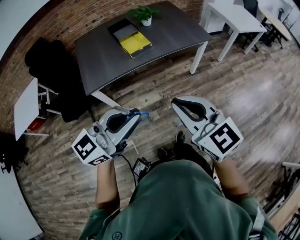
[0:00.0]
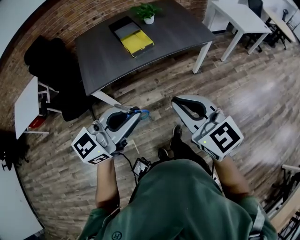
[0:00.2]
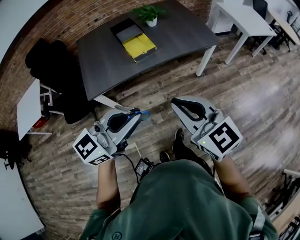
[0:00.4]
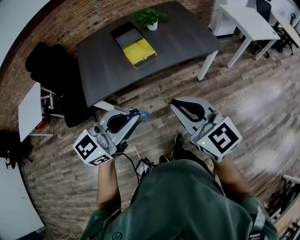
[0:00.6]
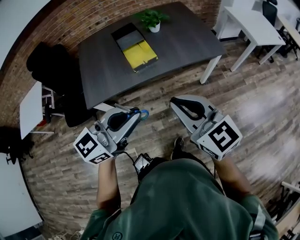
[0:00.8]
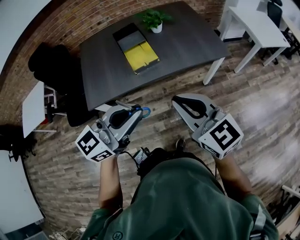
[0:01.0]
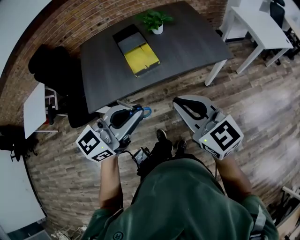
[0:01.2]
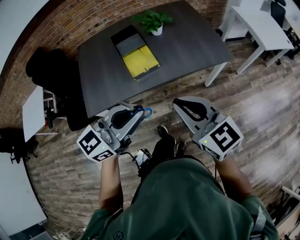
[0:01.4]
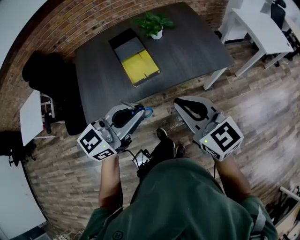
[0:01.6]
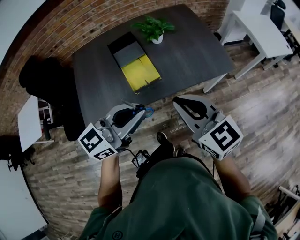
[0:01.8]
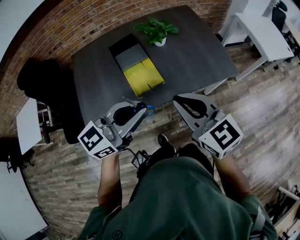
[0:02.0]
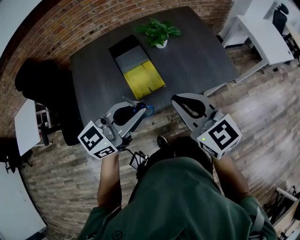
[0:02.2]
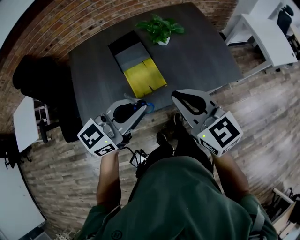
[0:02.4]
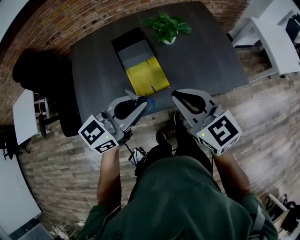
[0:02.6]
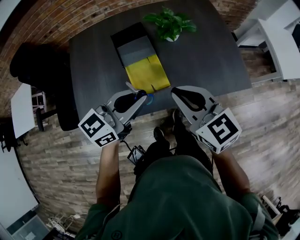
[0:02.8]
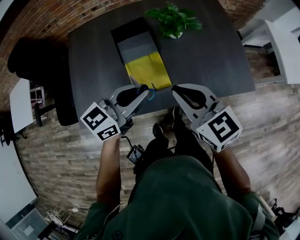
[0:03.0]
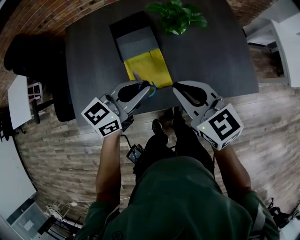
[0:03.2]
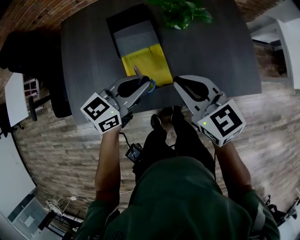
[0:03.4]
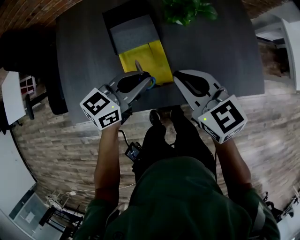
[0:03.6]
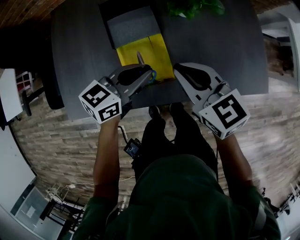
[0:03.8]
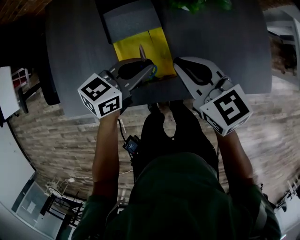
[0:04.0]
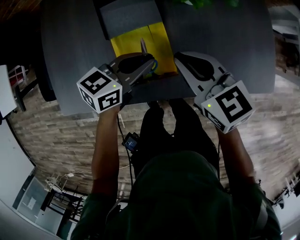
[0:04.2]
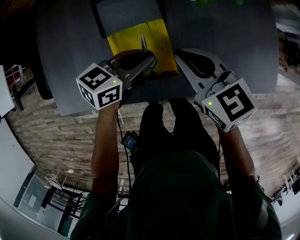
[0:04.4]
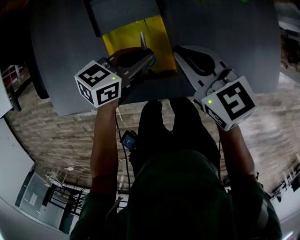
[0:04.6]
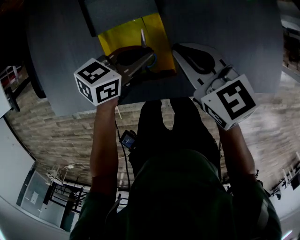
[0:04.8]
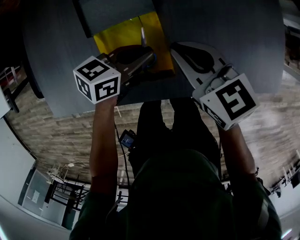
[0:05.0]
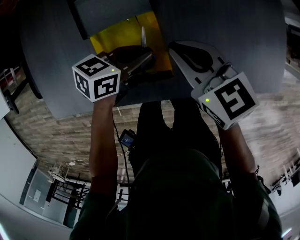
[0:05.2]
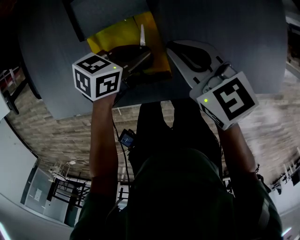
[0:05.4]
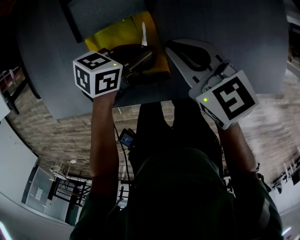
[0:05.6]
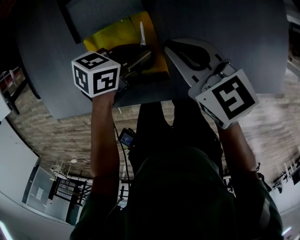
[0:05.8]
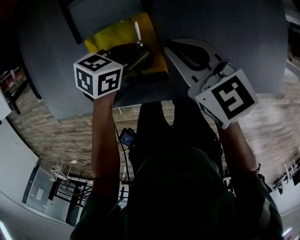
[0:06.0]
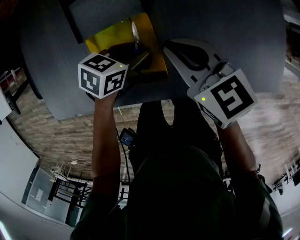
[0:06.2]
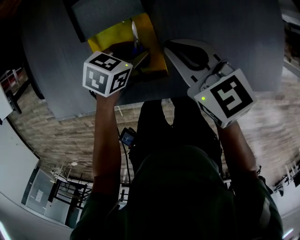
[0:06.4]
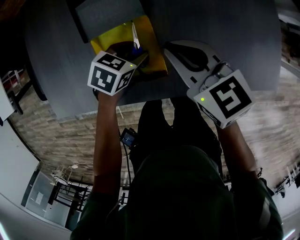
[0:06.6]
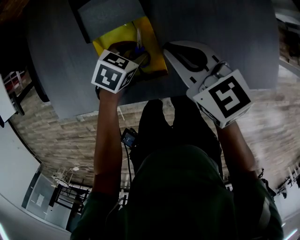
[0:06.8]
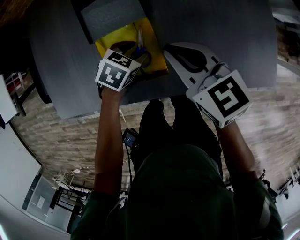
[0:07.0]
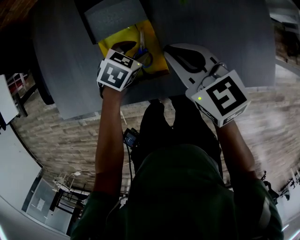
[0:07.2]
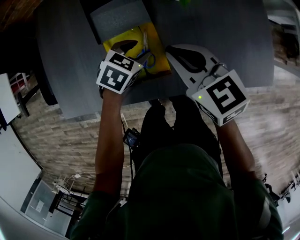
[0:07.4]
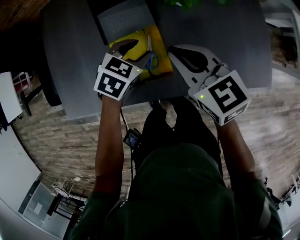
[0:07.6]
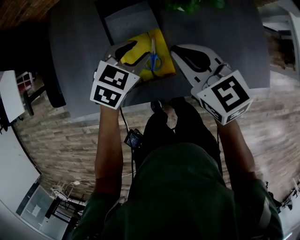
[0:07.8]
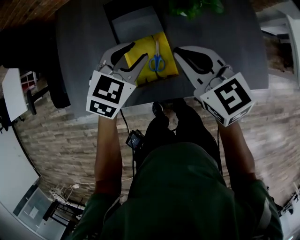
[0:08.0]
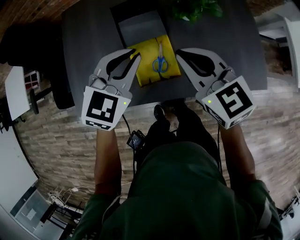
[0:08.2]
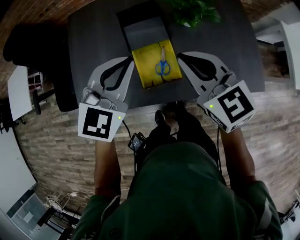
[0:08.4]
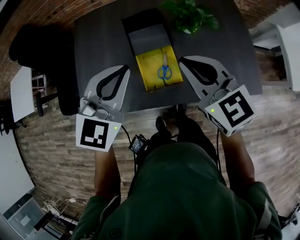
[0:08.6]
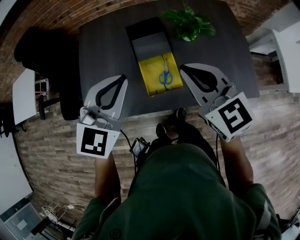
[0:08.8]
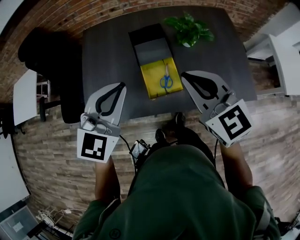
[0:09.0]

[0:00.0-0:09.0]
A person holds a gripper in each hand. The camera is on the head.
0:00.0 to 0:01.6: Both grippers move forward, about 30 cm.
0:01.6 to 0:03.0: The right gripper heads forward, covering some 20 cm. The left gripper travels forward and downward by roughly 25 cm.
0:03.0 to 0:04.4: Both grippers travel together downward and forward, some 20 cm. The left gripper swivels roughly 20 degrees.
0:04.4 to 0:06.0: The left gripper goes roughly 10 cm downward; the right gripper changes place by about 5 cm.
0:06.0 to 0:07.6: The two grippers go some 10 cm upward. The left gripper rotates some 40 degrees, and opens its fingers.
0:07.6 to 0:09.0: The right gripper heads upward and backward, covering approximately 20 cm, and rotates some 20 degrees, while the left gripper is displaced upward, backward and to the left by roughly 35 cm, angles its fingers upward, by about 40 degrees, and closes its fingers.

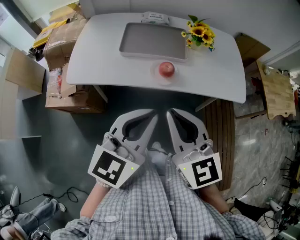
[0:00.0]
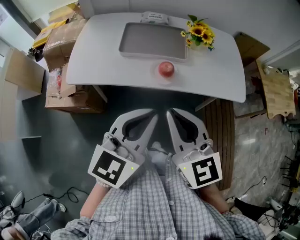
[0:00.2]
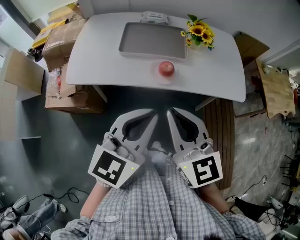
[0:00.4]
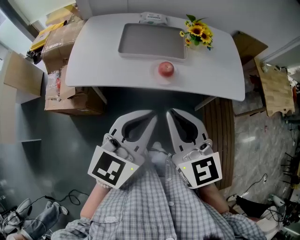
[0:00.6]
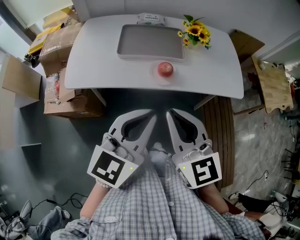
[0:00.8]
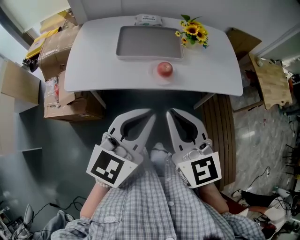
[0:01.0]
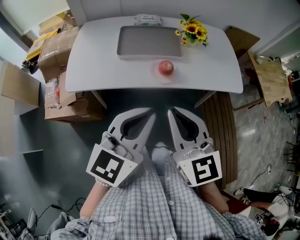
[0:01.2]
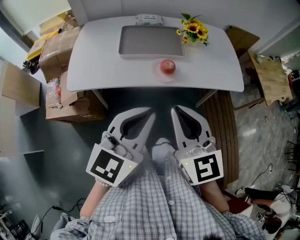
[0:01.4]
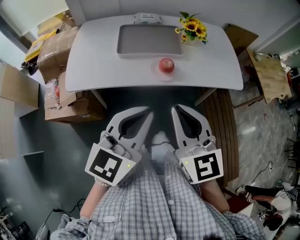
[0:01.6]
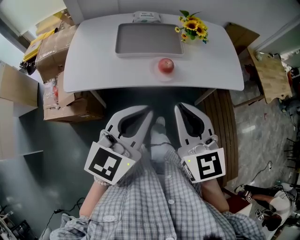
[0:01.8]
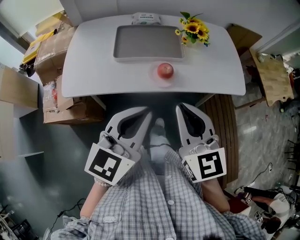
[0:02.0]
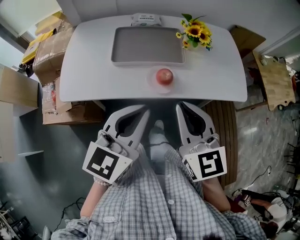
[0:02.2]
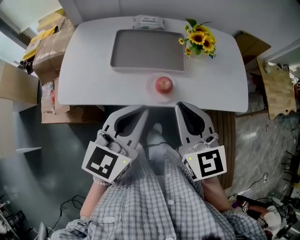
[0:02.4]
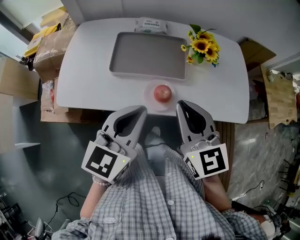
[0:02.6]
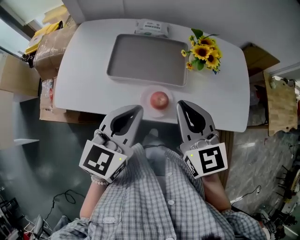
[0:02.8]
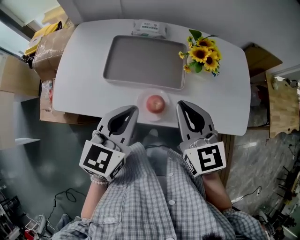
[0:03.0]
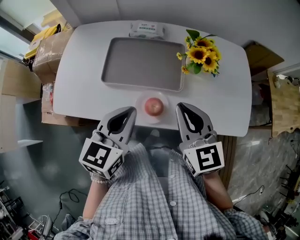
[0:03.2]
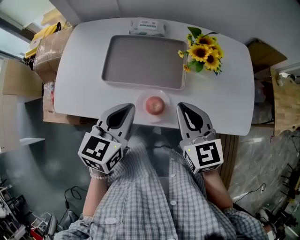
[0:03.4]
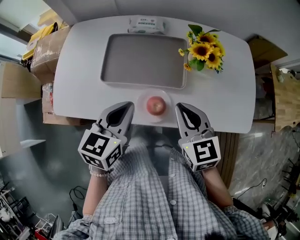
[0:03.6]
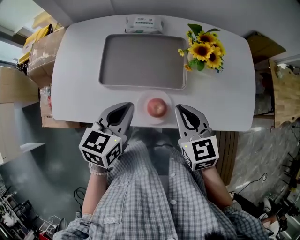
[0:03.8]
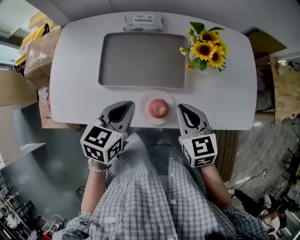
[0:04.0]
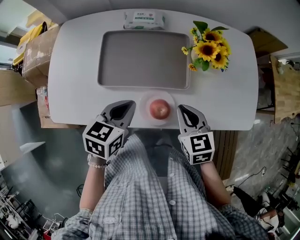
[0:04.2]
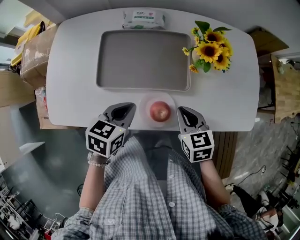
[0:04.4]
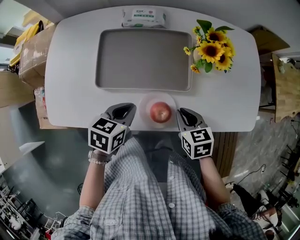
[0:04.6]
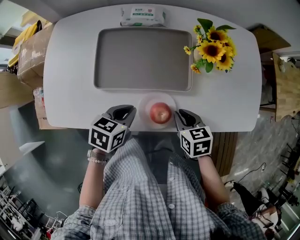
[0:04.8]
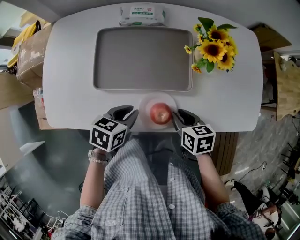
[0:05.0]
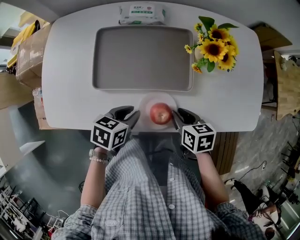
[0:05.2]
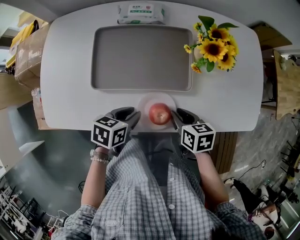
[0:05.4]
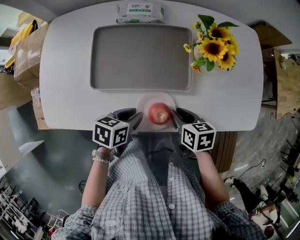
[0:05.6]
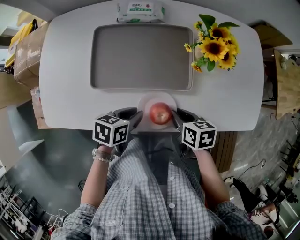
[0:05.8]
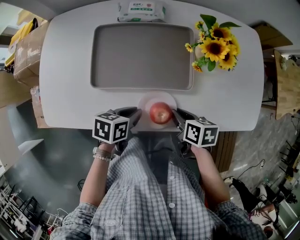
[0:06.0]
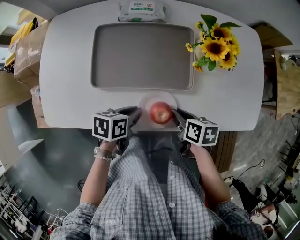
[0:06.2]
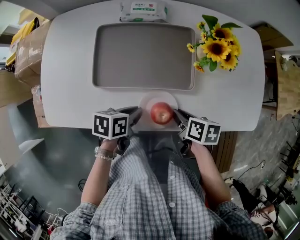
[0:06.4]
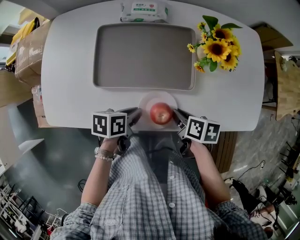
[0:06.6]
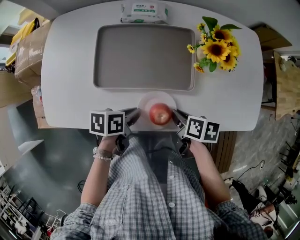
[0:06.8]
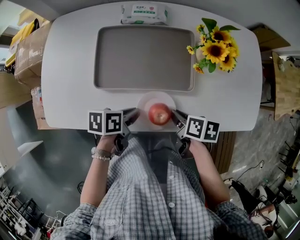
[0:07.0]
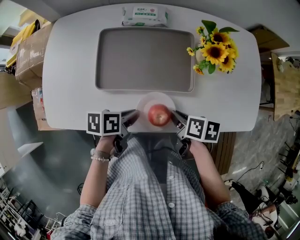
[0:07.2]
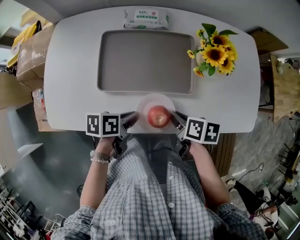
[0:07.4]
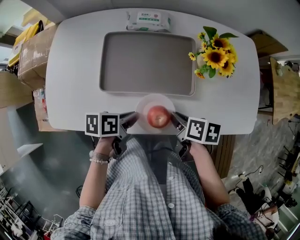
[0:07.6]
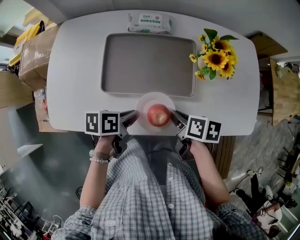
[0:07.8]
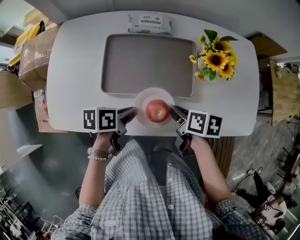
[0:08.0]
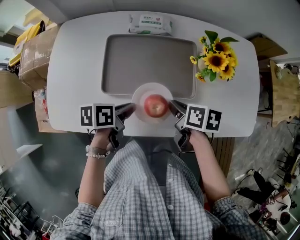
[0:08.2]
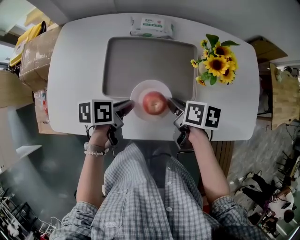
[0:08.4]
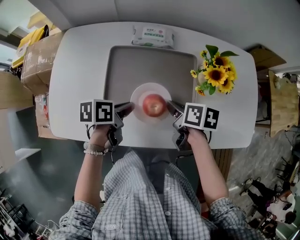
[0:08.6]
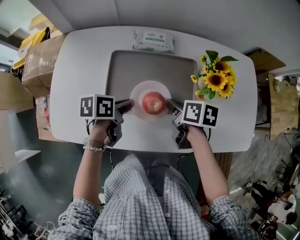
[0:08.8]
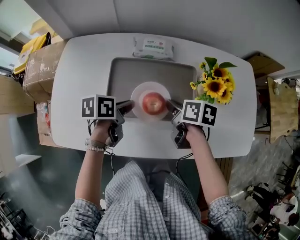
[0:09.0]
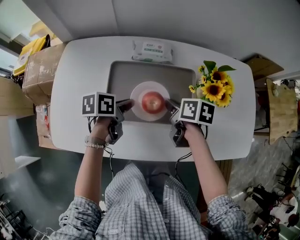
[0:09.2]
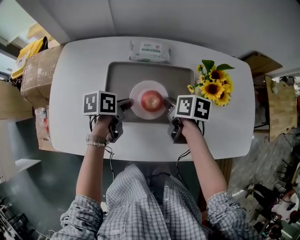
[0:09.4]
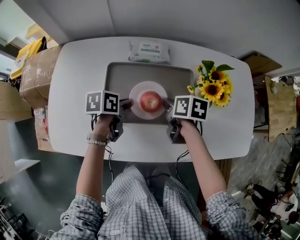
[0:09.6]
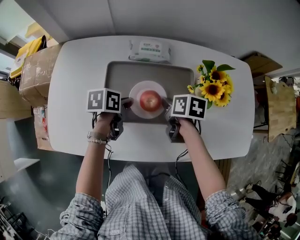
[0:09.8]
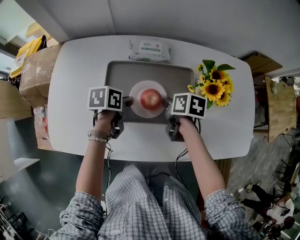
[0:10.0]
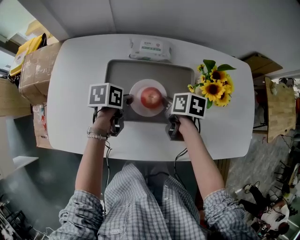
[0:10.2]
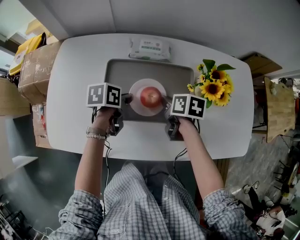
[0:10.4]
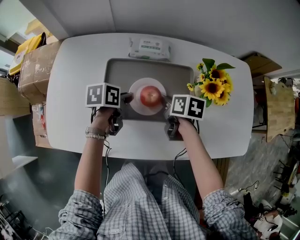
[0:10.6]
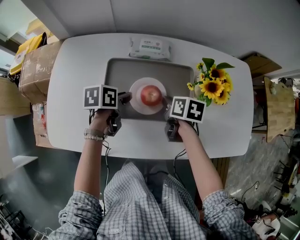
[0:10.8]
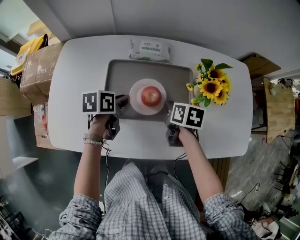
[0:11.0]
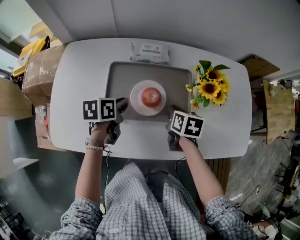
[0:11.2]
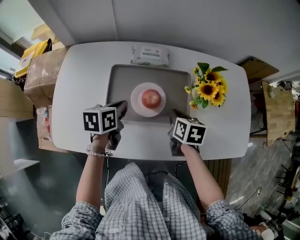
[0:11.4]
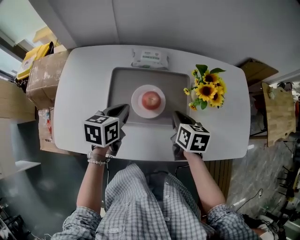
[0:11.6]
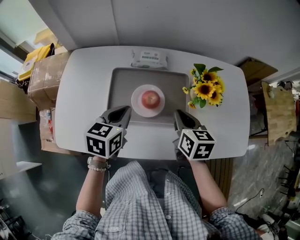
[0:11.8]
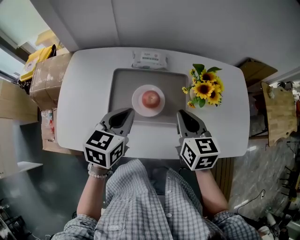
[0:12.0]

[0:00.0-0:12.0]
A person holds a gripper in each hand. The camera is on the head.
0:00.0 to 0:01.6: The left gripper ends up approximately 5 cm from where it was.
0:01.6 to 0:03.0: The grippers both shift forward by roughly 25 cm.
0:03.0 to 0:04.4: The left gripper goes roughly 15 cm downward and forward, and swivels approximately 30 degrees; the right gripper goes some 20 cm downward, and turns by approximately 30 degrees.
0:04.4 to 0:06.0: The two grippers go approximately 10 cm downward. The left gripper changes its angle by approximately 20 degrees; the right gripper swivels about 40 degrees.
0:06.0 to 0:07.6: The grippers stay close to where they were, moving slightly.
0:07.6 to 0:09.0: Both grippers move forward and to the left, roughly 15 cm.
0:09.0 to 0:10.4: The left gripper shifts by some 5 cm.
0:10.4 to 0:12.0: Both grippers travel together upward and backward, approximately 20 cm. The left gripper swivels roughly 40 degrees. Meanwhile the right gripper changes its angle by about 40 degrees.

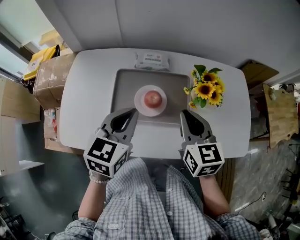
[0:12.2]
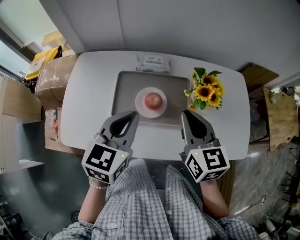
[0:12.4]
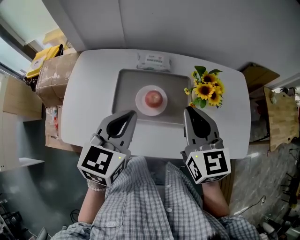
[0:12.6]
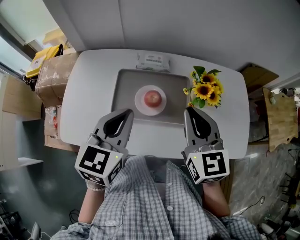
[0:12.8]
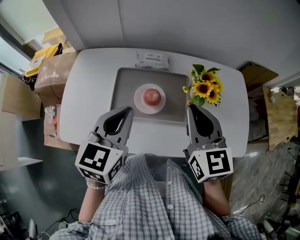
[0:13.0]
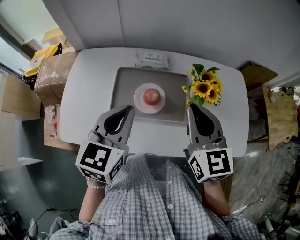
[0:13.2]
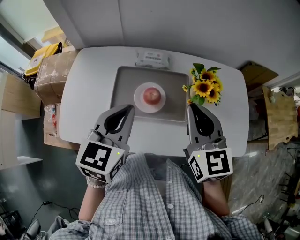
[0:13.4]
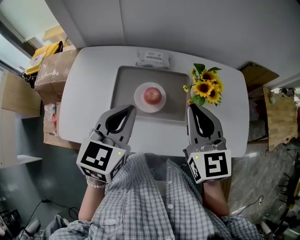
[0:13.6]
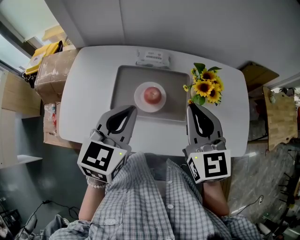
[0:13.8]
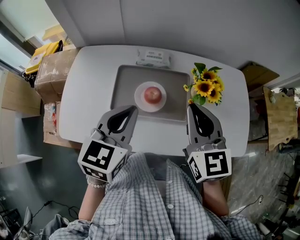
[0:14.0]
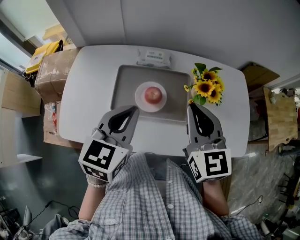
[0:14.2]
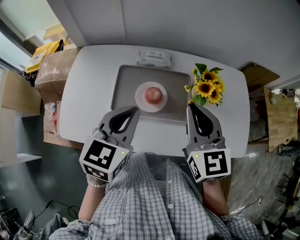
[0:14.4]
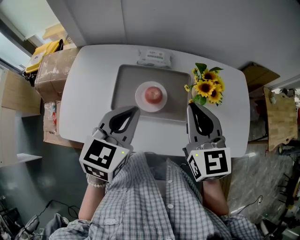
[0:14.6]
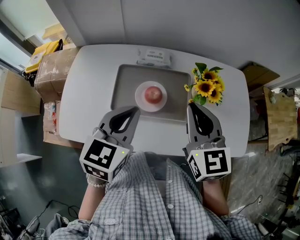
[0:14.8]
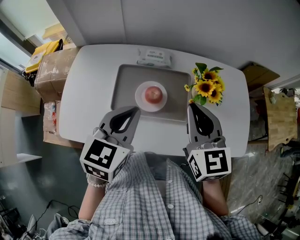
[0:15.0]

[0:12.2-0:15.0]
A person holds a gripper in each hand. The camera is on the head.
0:12.2 to 0:13.6: The right gripper is displaced upward by about 10 cm.
0:13.6 to 0:15.0: The grippers make only small movements.
